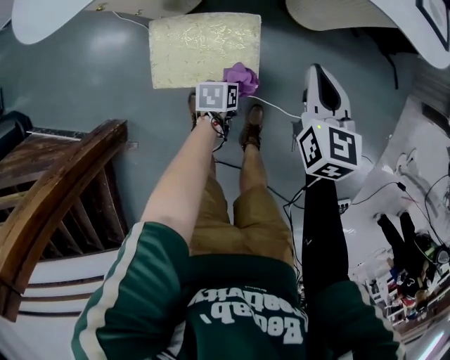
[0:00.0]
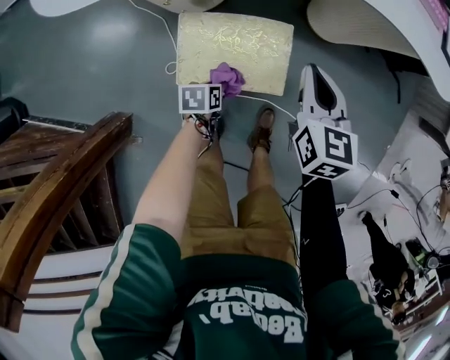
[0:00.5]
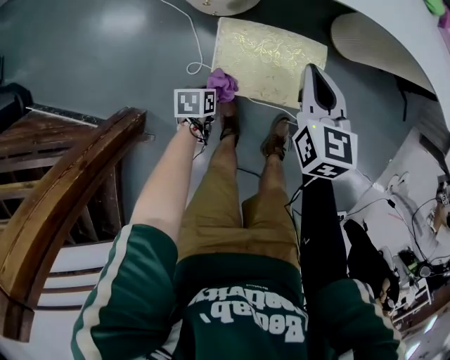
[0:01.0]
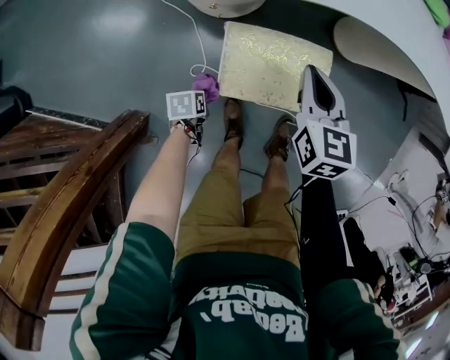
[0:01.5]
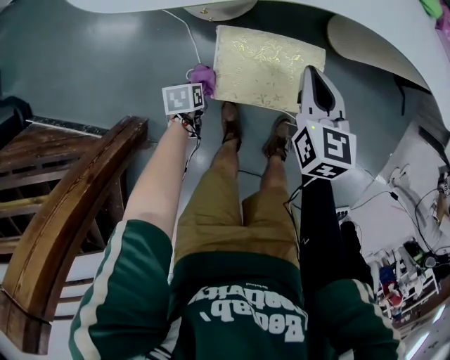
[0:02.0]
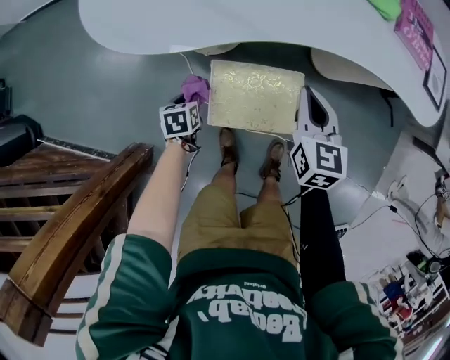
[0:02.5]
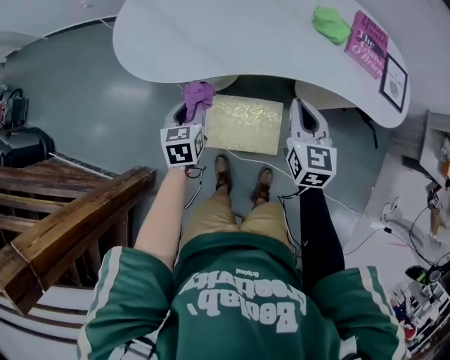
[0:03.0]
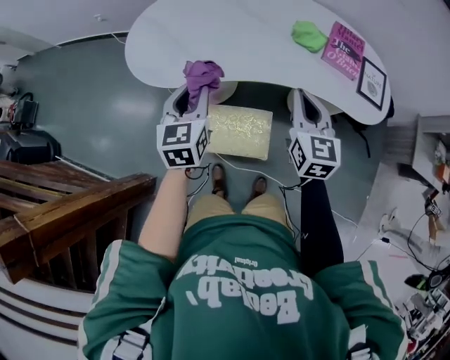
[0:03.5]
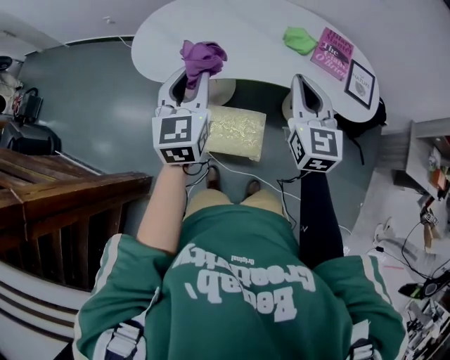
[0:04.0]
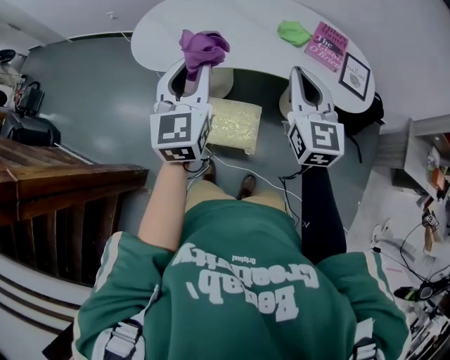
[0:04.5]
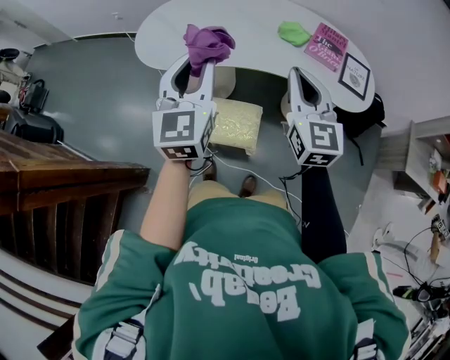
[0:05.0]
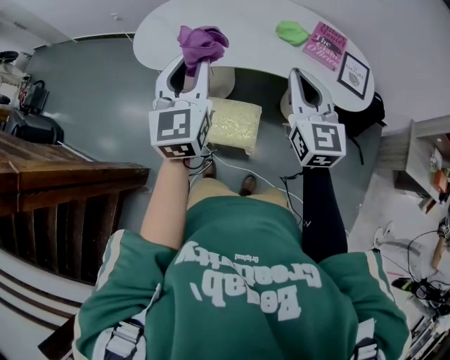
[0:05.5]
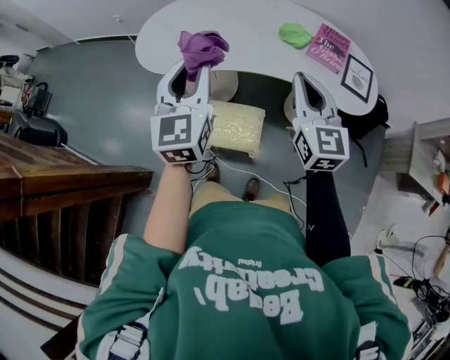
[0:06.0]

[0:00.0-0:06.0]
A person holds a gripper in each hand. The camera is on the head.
0:00.0 to 0:02.0: The grippers both shift to the left by about 30 cm.
0:02.0 to 0:04.0: The left gripper travels upward by about 60 cm, and points its fingers approximately 60 degrees further upward, while the right gripper moves upward, roughly 35 cm, and rotates approximately 30 degrees.
0:04.0 to 0:06.0: The grippers both shift backward by about 5 cm.

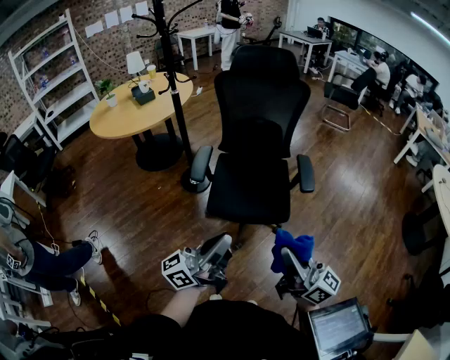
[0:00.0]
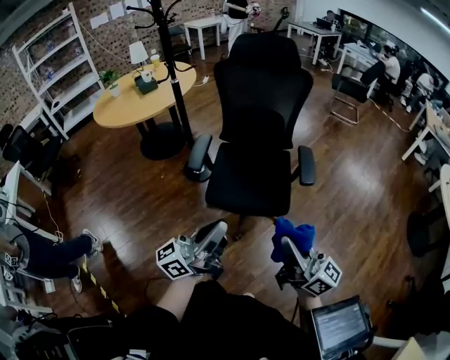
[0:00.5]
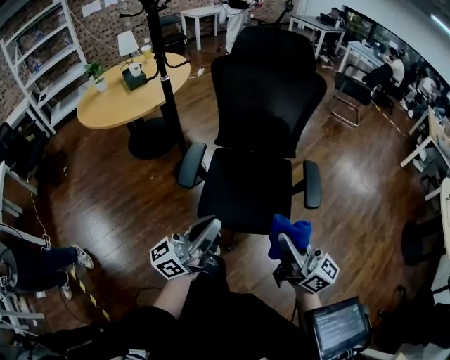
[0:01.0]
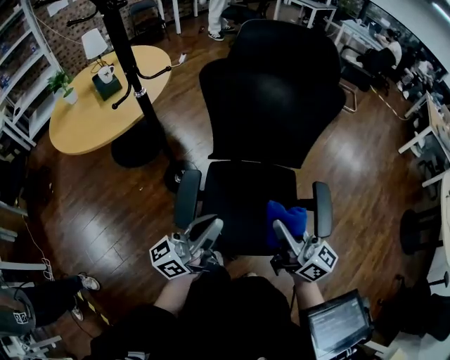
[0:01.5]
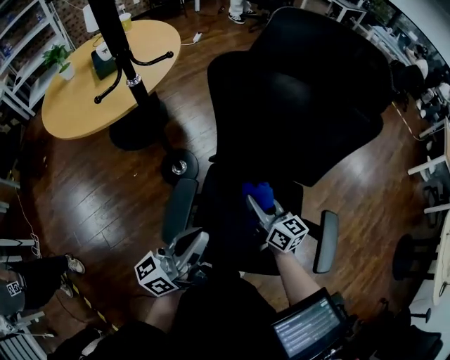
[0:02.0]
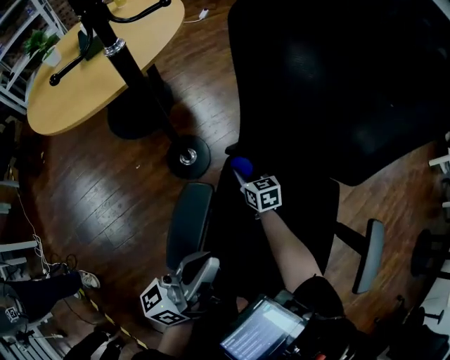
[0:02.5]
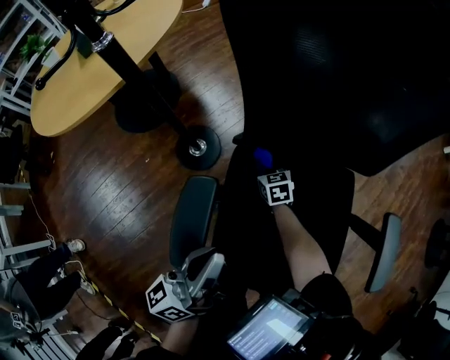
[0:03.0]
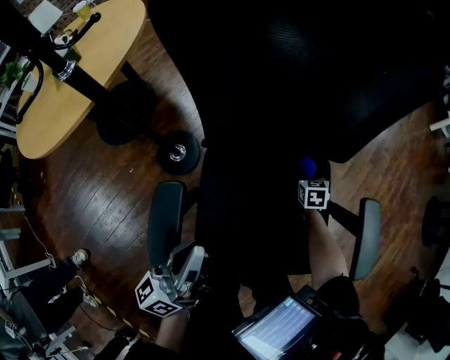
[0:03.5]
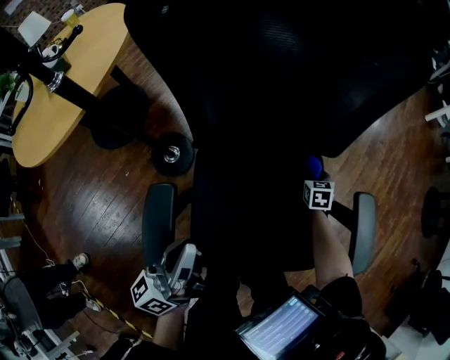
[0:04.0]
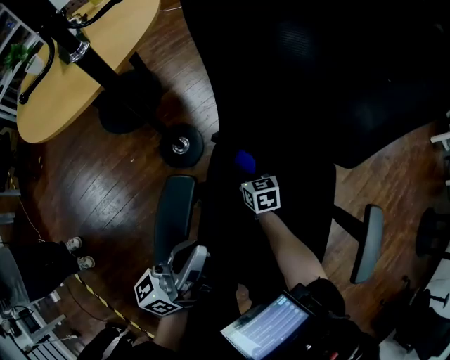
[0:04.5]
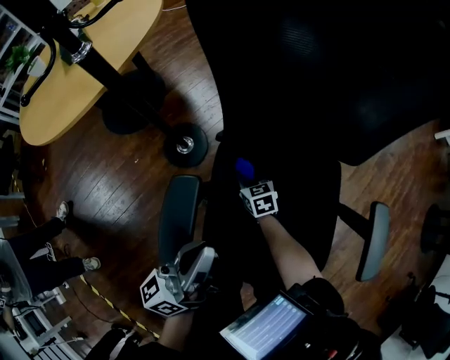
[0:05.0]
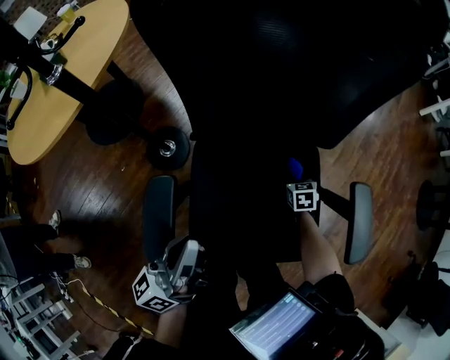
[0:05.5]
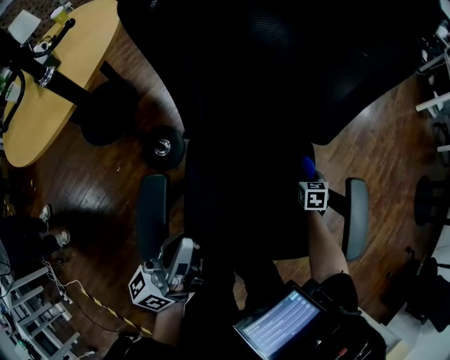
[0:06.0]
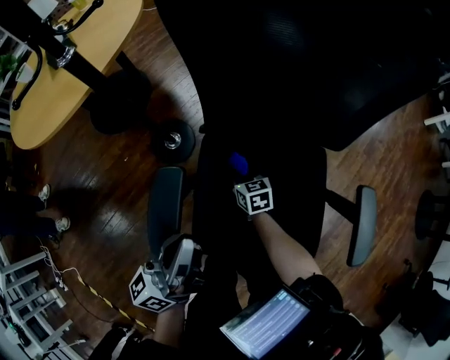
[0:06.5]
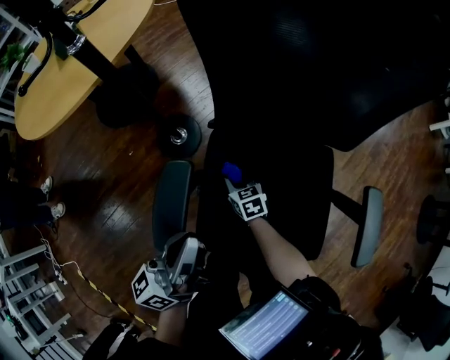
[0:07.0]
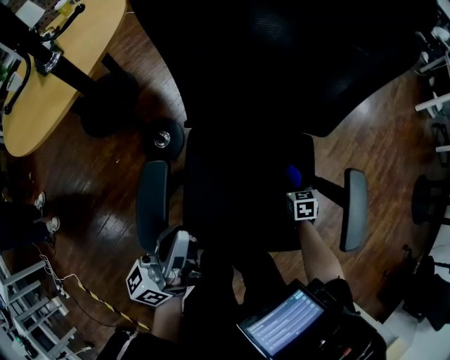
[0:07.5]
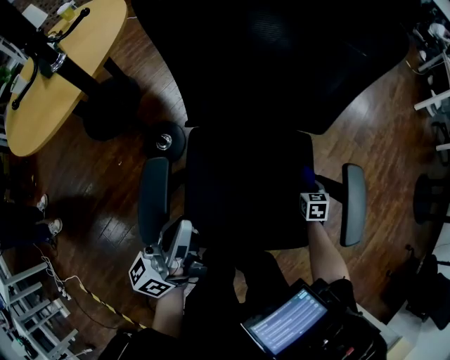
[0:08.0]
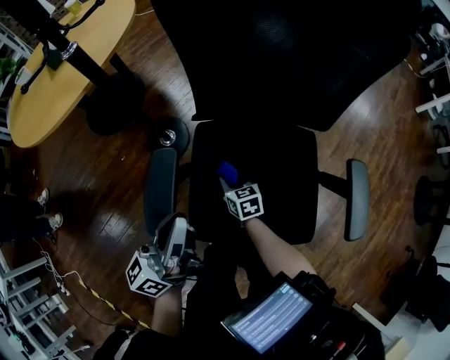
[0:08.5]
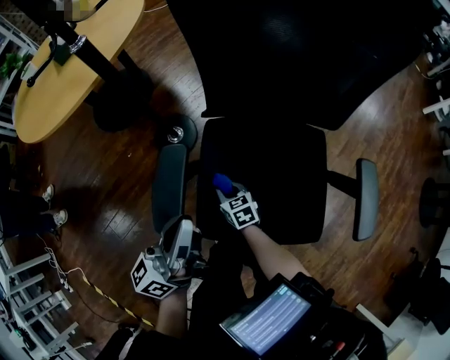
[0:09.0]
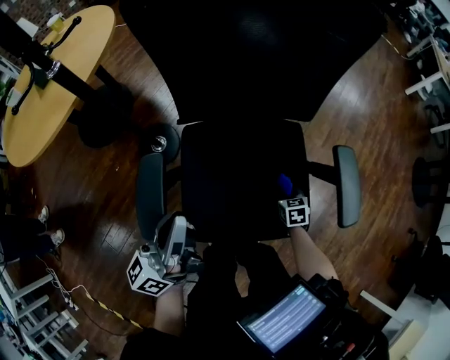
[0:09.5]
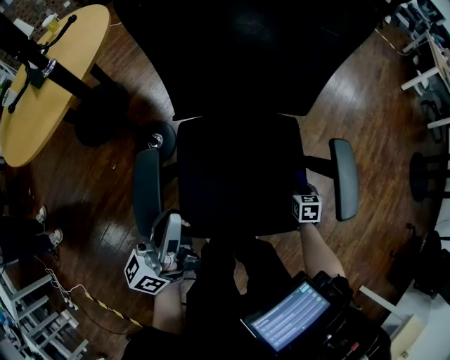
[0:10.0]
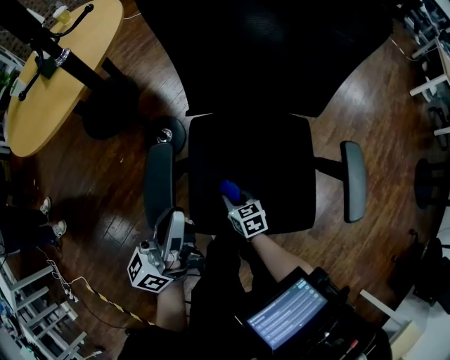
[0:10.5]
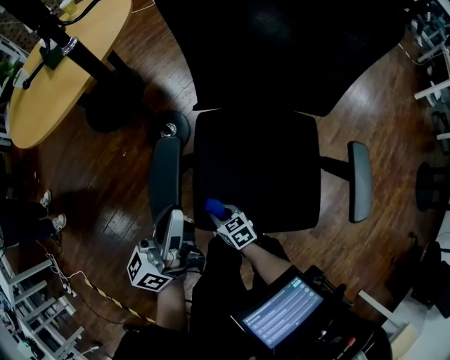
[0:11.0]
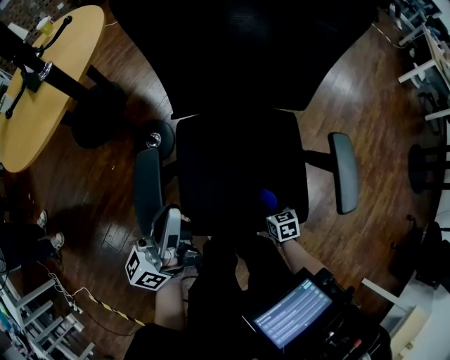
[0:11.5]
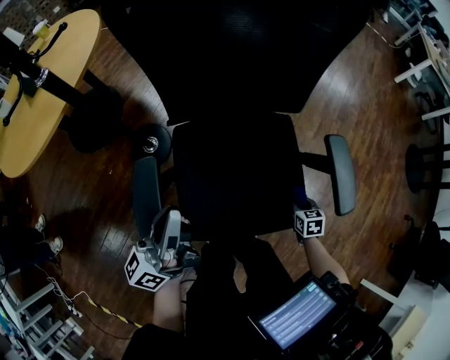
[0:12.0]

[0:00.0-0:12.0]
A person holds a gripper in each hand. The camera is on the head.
0:00.0 to 0:02.0: The two grippers travel together, forward, roughly 50 cm. The right gripper points its fingers roughly 30 degrees further downward.
0:02.0 to 0:04.0: The left gripper is displaced downward by roughly 10 cm. Meanwhile the right gripper goes approximately 30 cm downward, and tips its fingers downward by about 40 degrees.
0:04.0 to 0:06.0: The right gripper reaches about 35 cm to the left, then returns.

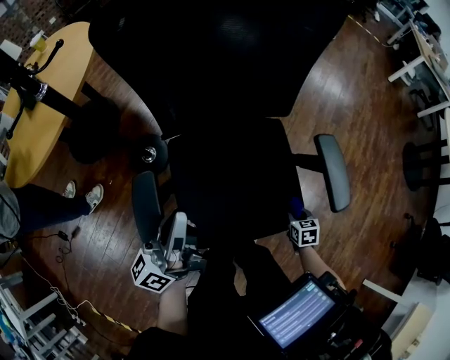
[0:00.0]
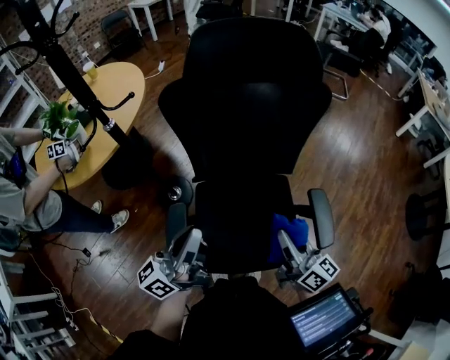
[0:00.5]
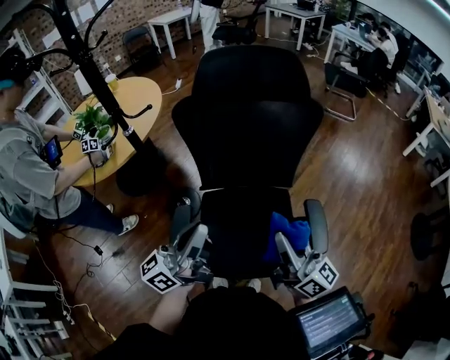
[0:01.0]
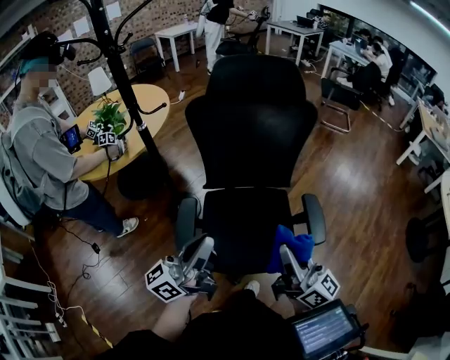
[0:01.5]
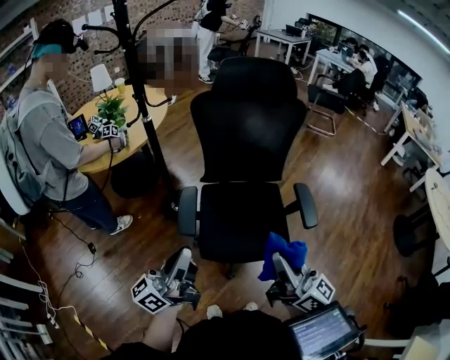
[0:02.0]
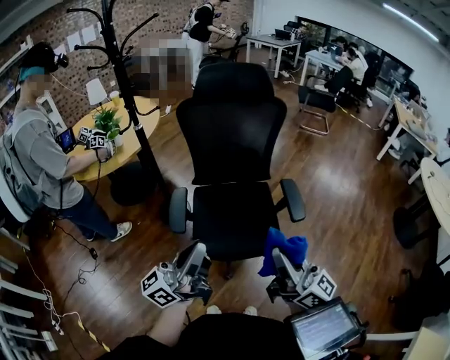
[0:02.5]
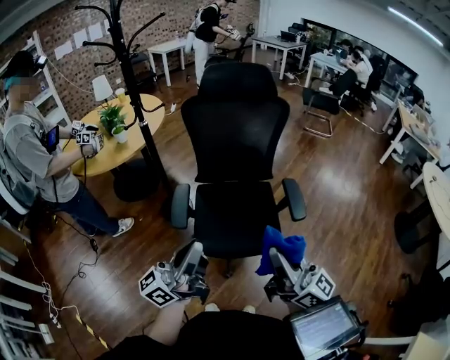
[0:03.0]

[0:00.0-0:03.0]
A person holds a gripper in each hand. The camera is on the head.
0:00.0 to 0:01.5: The left gripper heads upward and backward, covering approximately 25 cm. Meanwhile the right gripper travels upward by roughly 50 cm, and tips its fingers upward by approximately 80 degrees.
0:01.5 to 0:03.0: Both grippers travel together backward, roughly 15 cm.

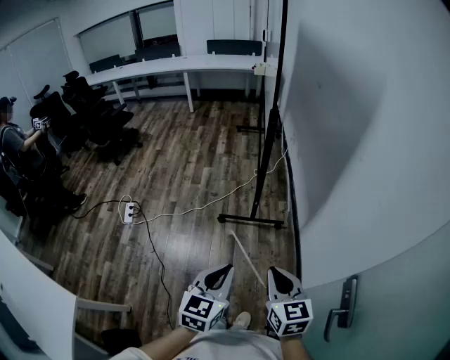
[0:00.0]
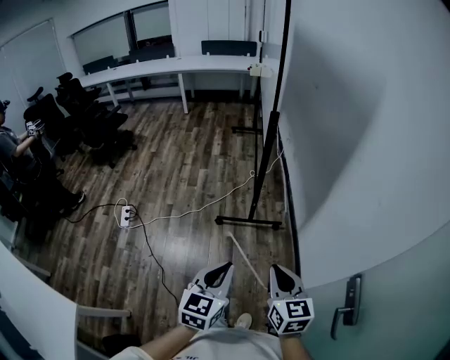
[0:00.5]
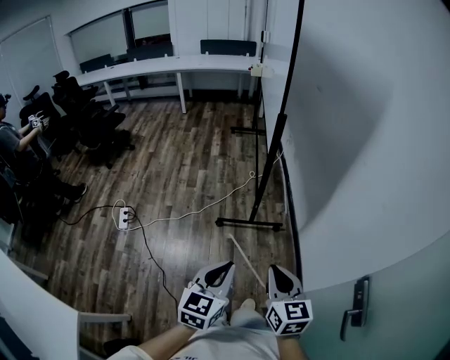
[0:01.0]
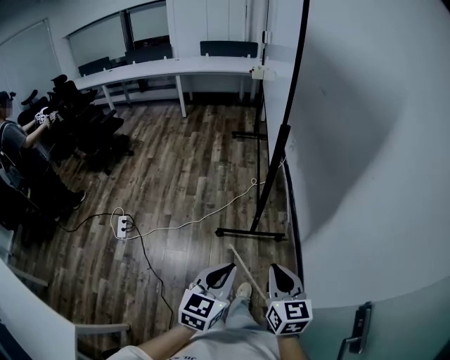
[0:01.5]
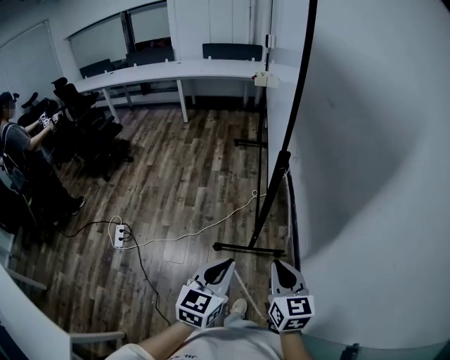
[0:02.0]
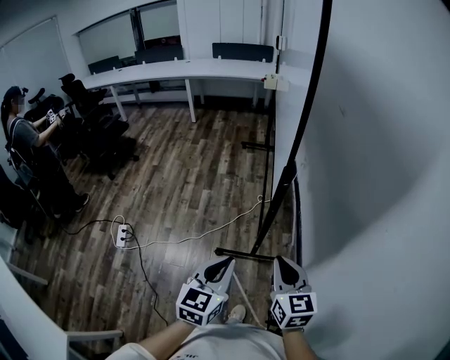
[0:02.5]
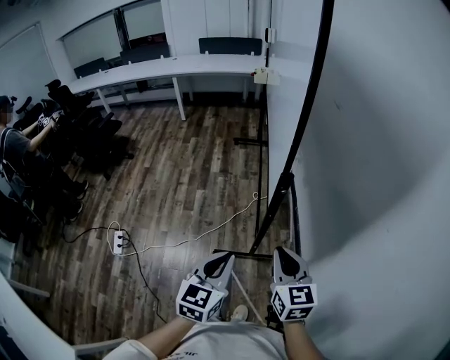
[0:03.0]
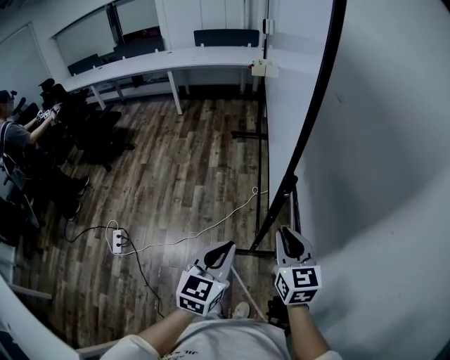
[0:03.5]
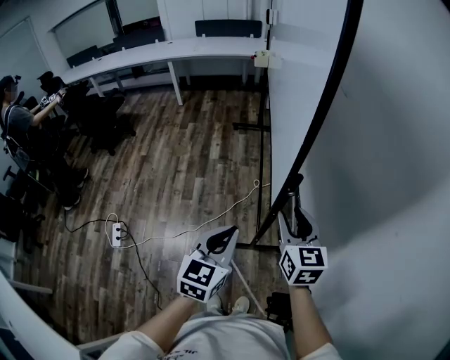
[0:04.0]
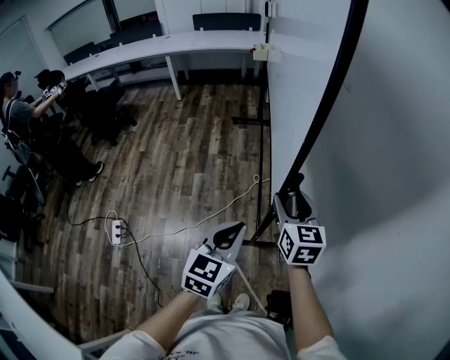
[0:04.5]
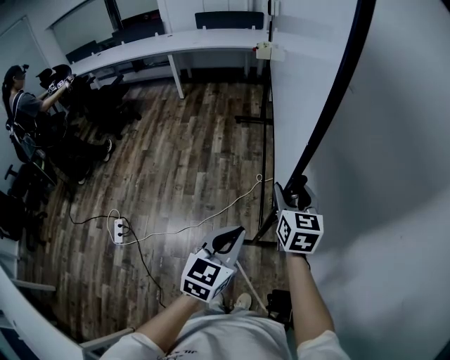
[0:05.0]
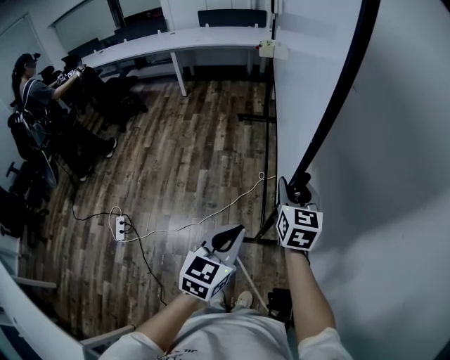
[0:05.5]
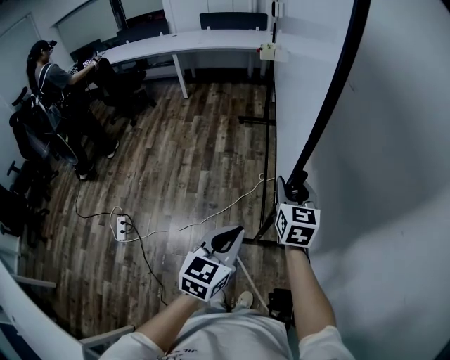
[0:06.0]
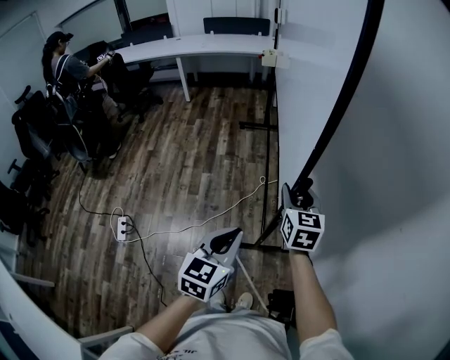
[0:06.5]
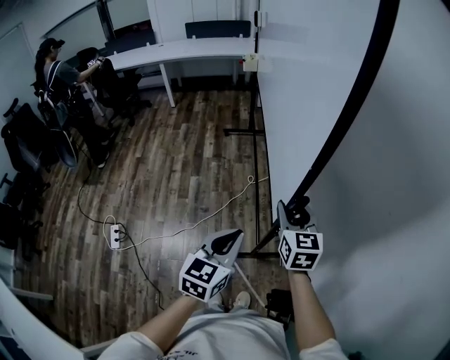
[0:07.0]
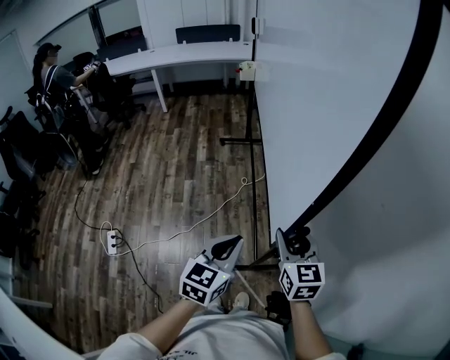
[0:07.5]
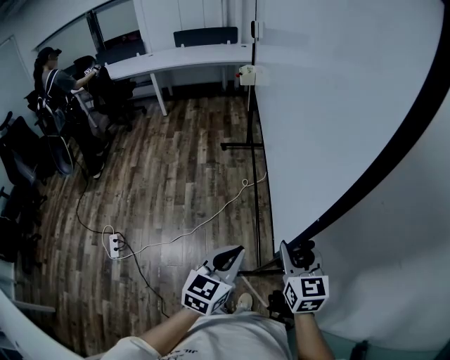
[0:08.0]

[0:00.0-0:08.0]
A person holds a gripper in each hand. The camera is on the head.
0:00.0 to 0:02.0: The grippers both shift forward by approximately 25 cm.
0:02.0 to 0:04.0: Both grippers travel together forward, roughly 25 cm. The right gripper opens up.
0:04.0 to 0:06.0: The right gripper heads forward, covering some 10 cm.
0:06.0 to 0:08.0: The left gripper heads backward and to the right, covering approximately 10 cm, while the right gripper moves backward and to the right, about 25 cm.
